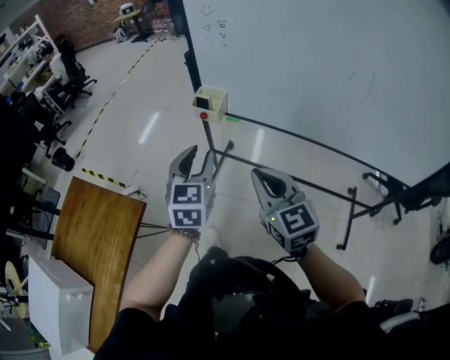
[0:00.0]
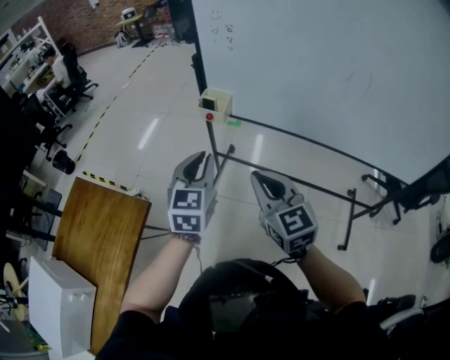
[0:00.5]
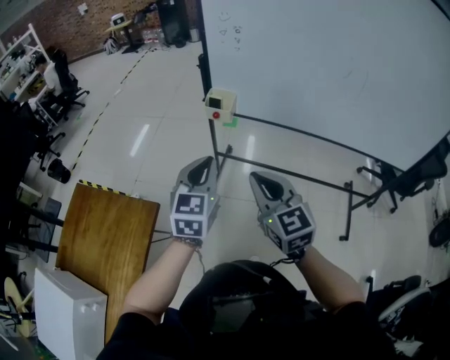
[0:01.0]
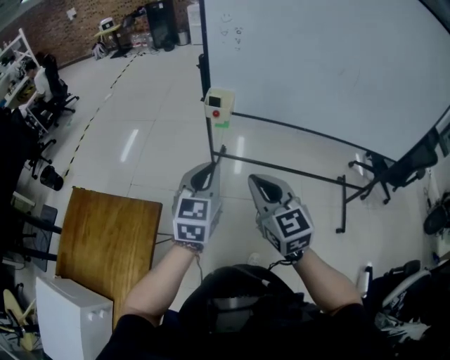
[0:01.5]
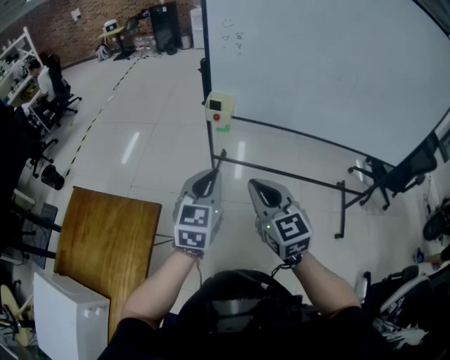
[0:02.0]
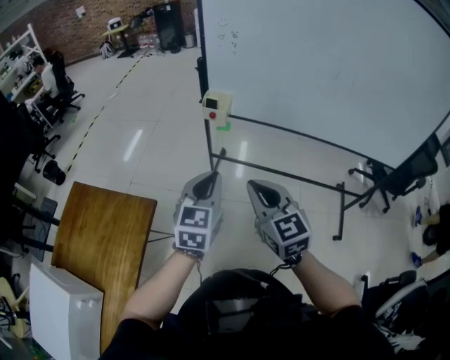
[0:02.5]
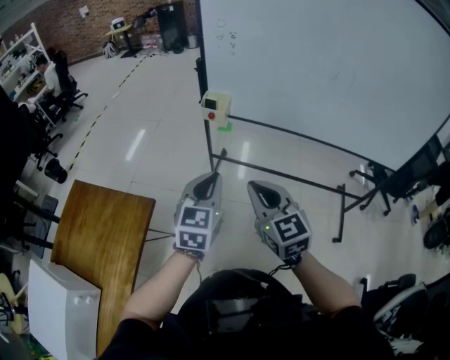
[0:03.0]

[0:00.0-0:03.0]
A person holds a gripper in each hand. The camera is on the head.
0:00.0 to 0:01.5: The right gripper heads to the left and backward, covering roughly 15 cm. The left gripper moves backward and to the left, roughly 10 cm, and closes its fingers.
0:01.5 to 0:03.0: The left gripper changes place by about 5 cm. The right gripper ends up about 5 cm from where it was.

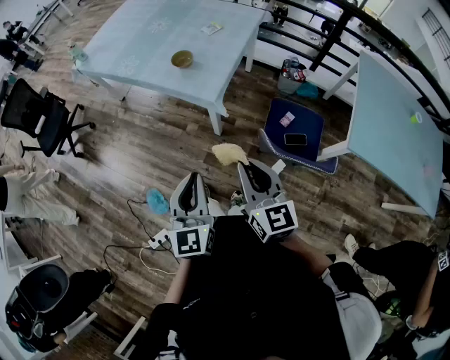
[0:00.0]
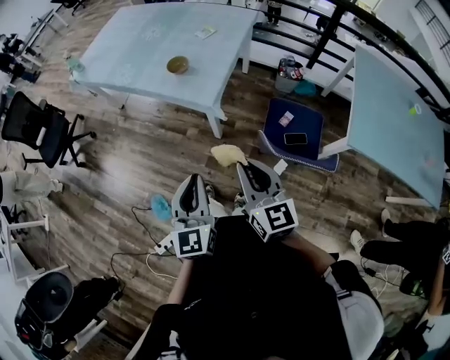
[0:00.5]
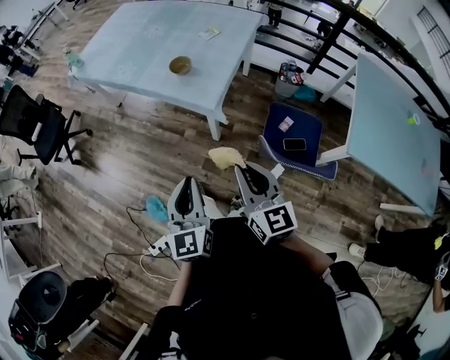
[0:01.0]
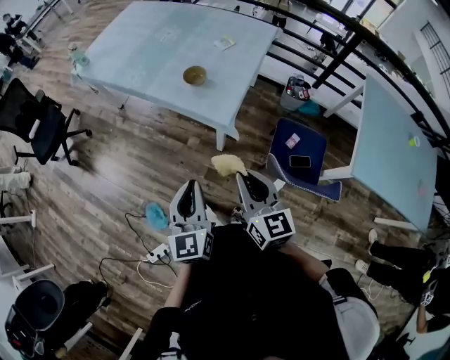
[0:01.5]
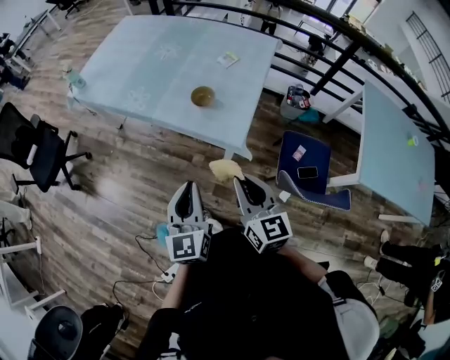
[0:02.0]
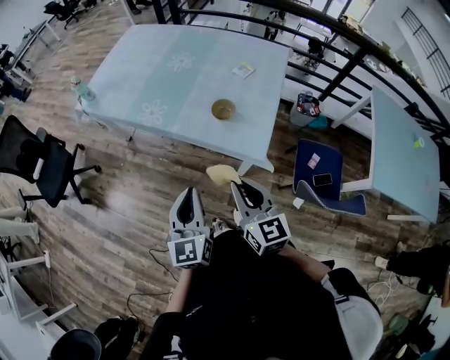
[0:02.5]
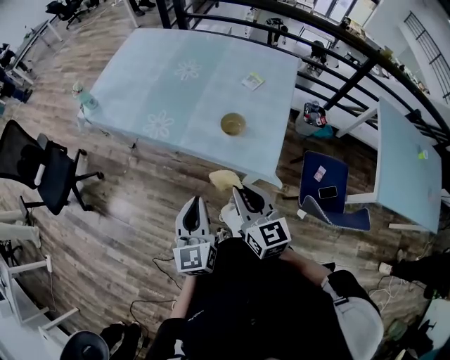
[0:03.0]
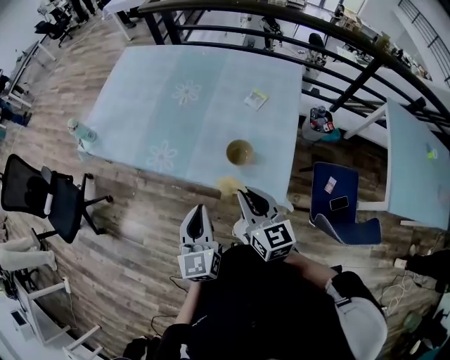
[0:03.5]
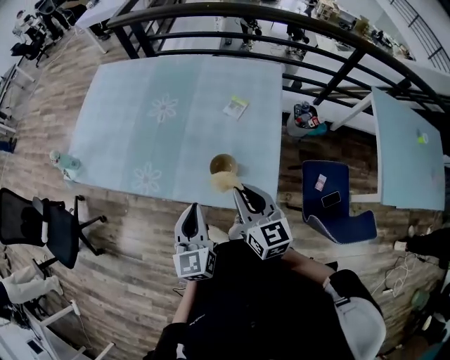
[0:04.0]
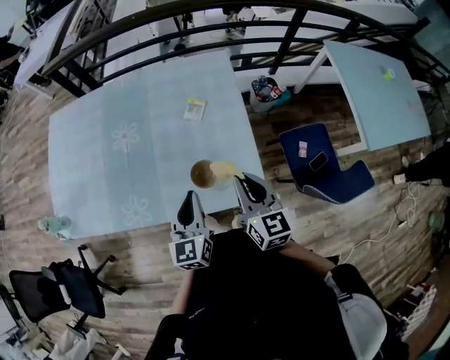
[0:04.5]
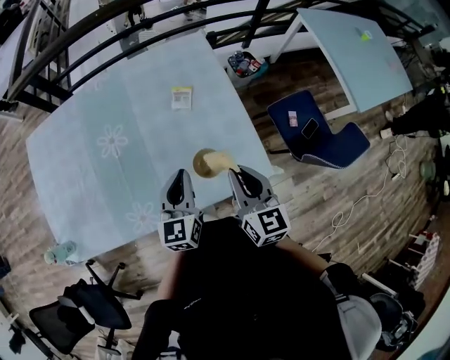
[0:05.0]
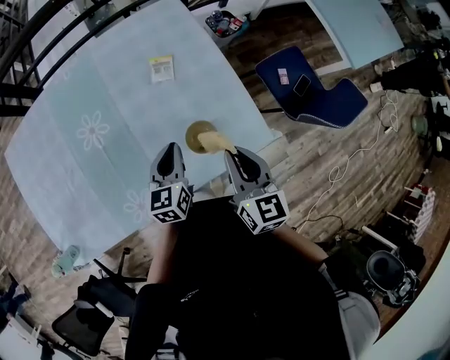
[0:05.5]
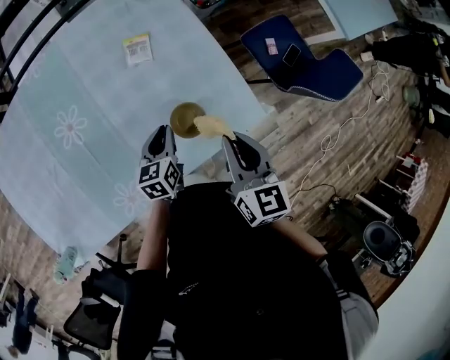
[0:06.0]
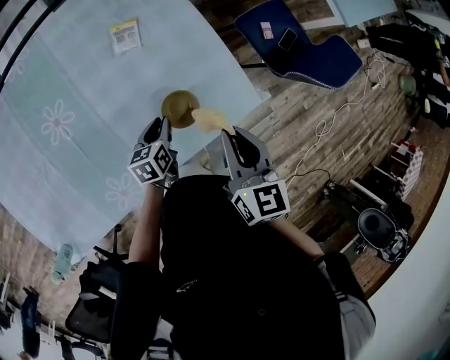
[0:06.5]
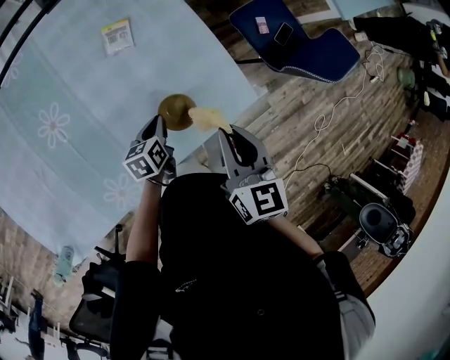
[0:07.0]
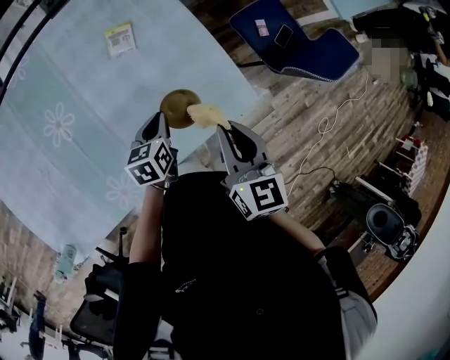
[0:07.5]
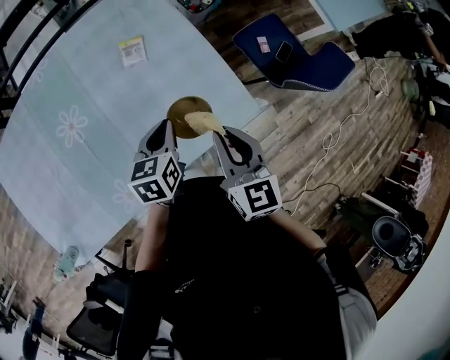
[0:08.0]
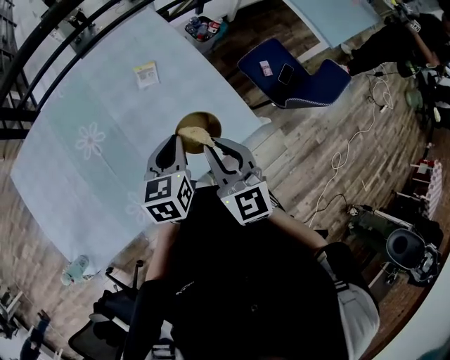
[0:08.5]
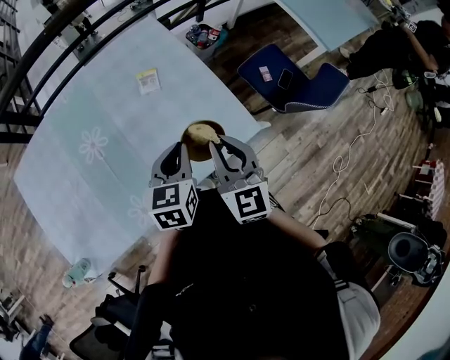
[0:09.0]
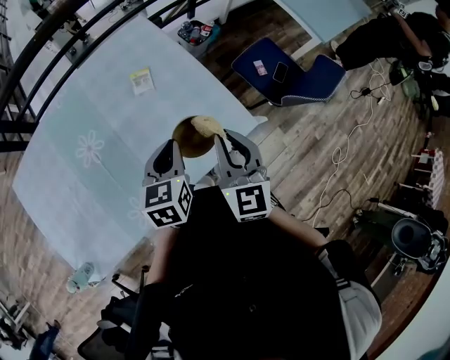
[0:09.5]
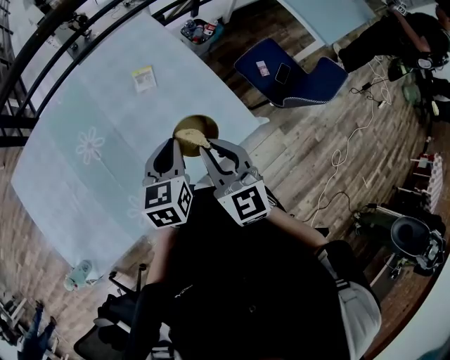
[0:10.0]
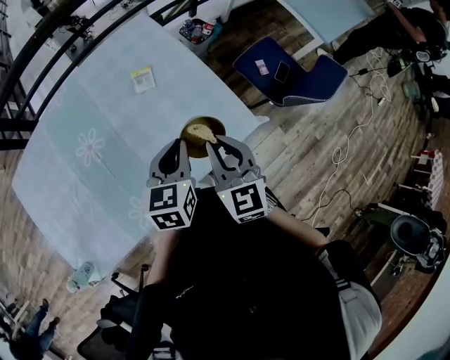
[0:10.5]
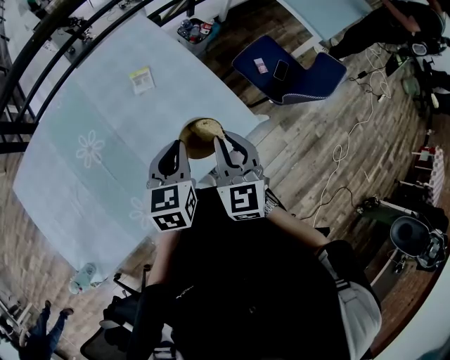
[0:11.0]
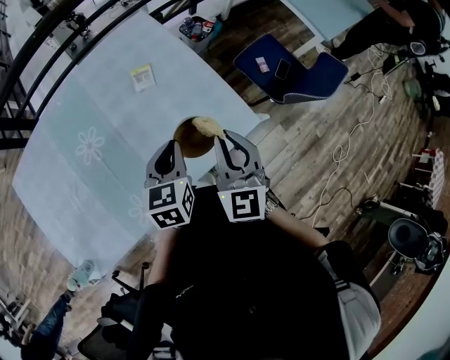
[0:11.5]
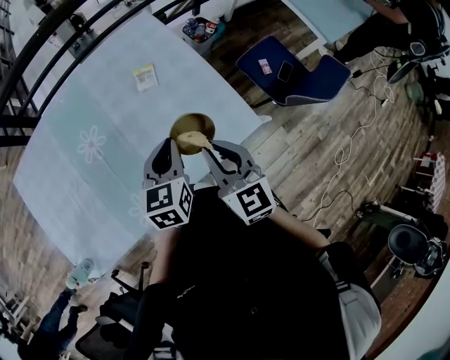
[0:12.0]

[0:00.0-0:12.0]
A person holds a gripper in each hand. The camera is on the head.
0:00.0 to 0:02.0: Both grippers travel together forward and to the left, approximately 25 cm.
0:02.0 to 0:04.0: The two grippers go about 30 cm forward.
0:04.0 to 0:06.0: The right gripper is displaced downward by roughly 5 cm, and rotates roughly 50 degrees. The left gripper is displaced downward by roughly 20 cm, and swivels roughly 60 degrees.
0:06.0 to 0:08.0: The left gripper moves upward, roughly 10 cm.
0:08.0 to 0:10.0: The left gripper shifts about 10 cm upward. The right gripper ends up roughly 5 cm from where it was.

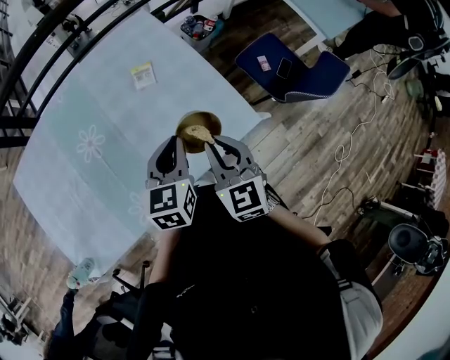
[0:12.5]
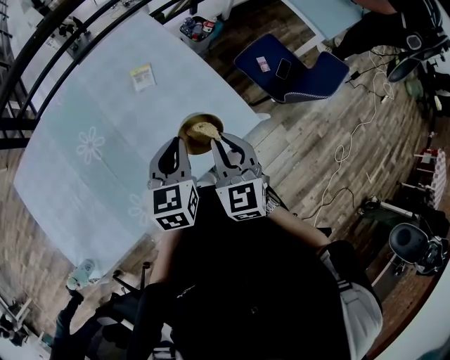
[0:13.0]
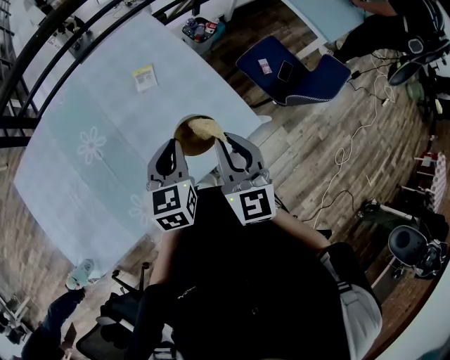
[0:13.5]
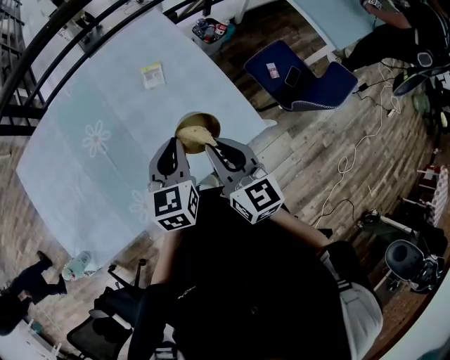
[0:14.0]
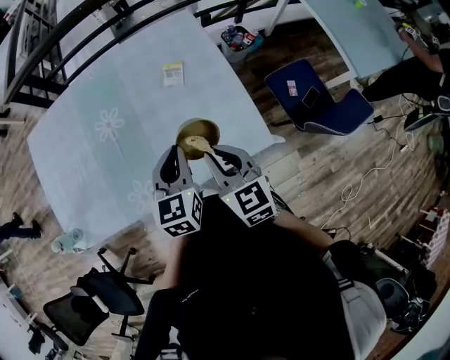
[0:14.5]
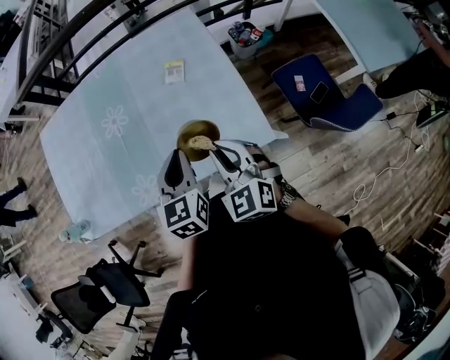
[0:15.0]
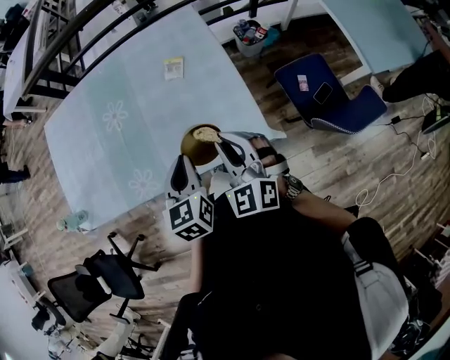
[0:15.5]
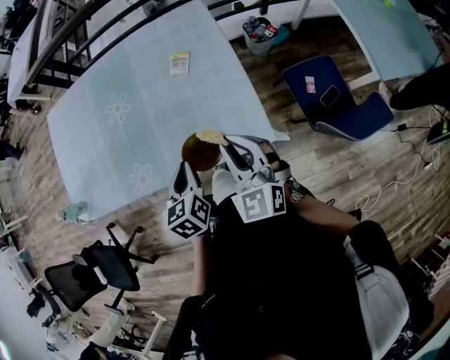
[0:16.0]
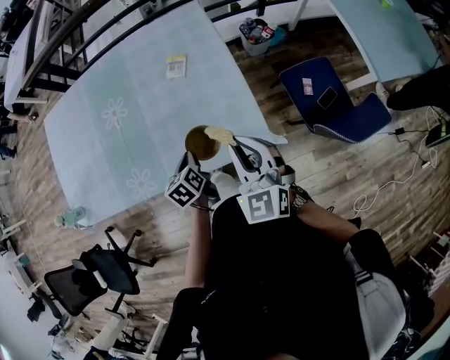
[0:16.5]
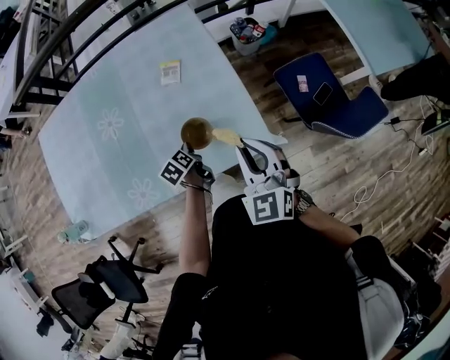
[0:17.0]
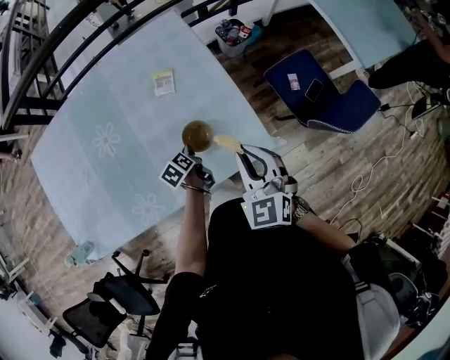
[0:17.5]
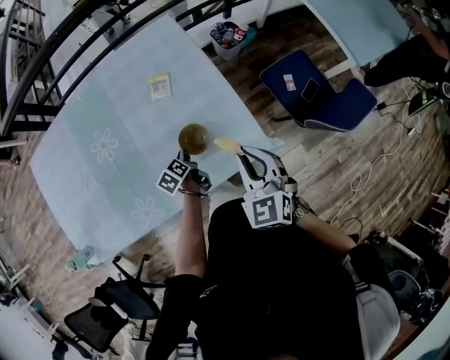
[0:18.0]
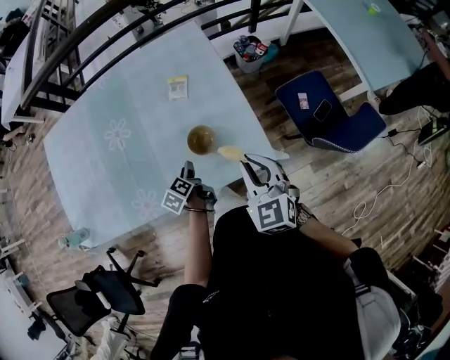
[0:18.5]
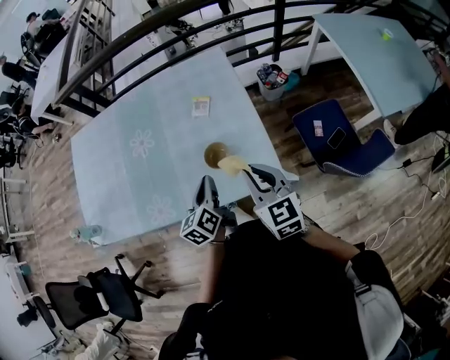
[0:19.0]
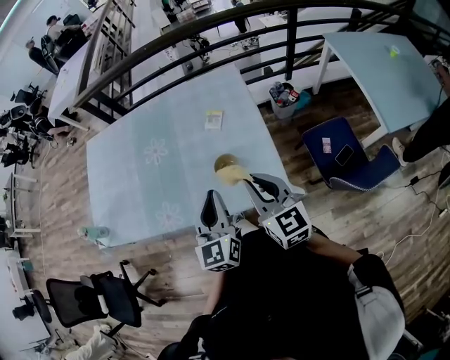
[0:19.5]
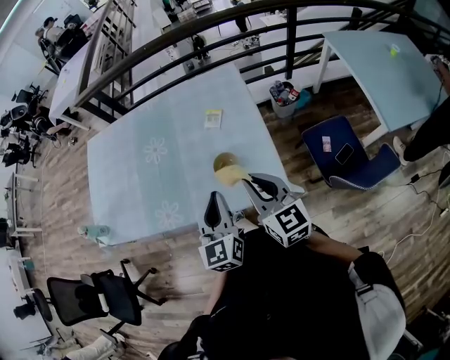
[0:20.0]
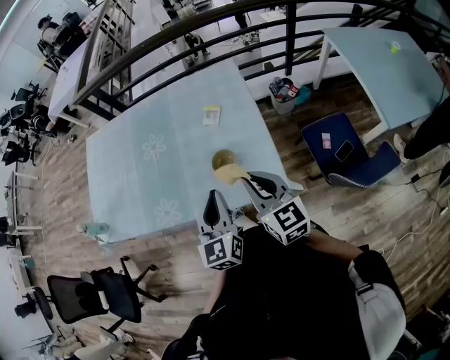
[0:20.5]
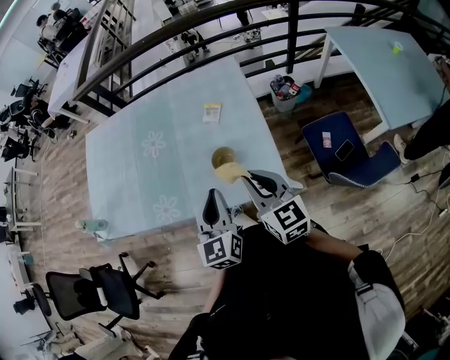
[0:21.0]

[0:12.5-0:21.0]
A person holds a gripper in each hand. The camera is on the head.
0:12.5 to 0:14.5: The left gripper swivels some 20 degrees. The right gripper swivels approximately 20 degrees.
0:14.5 to 0:16.5: The right gripper shifts some 10 cm to the right, and changes its angle by about 30 degrees, while the left gripper heads downward, covering roughly 20 cm, and swivels roughly 40 degrees.
0:16.5 to 0:19.0: The right gripper turns by approximately 20 degrees. Meanwhile the left gripper heads upward, covering roughly 10 cm, turns by some 30 degrees, and opens and closes again.
0:19.0 to 0:21.0: The left gripper goes about 10 cm upward and backward, and swivels roughly 30 degrees.

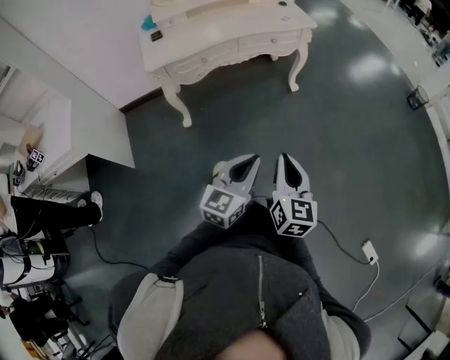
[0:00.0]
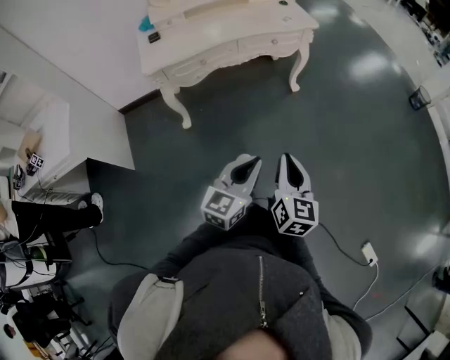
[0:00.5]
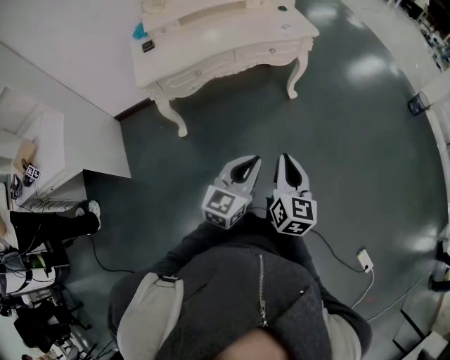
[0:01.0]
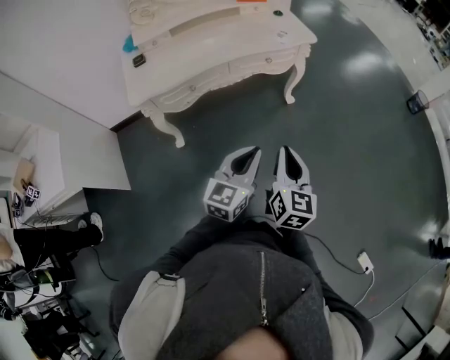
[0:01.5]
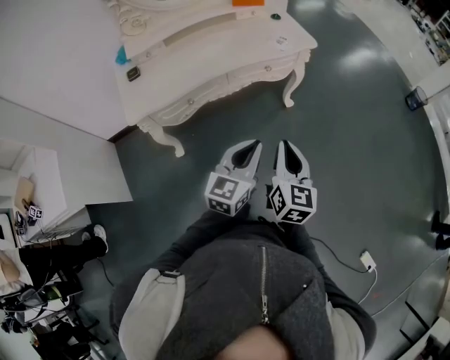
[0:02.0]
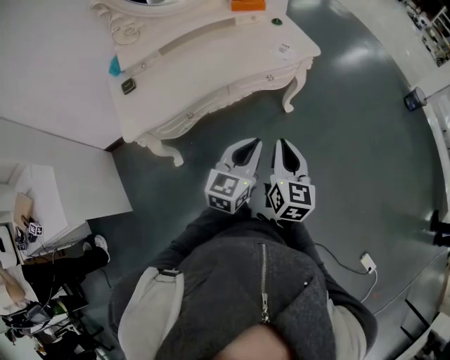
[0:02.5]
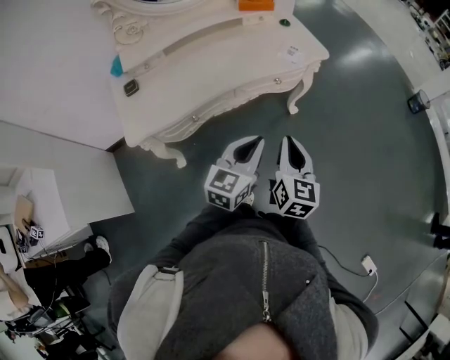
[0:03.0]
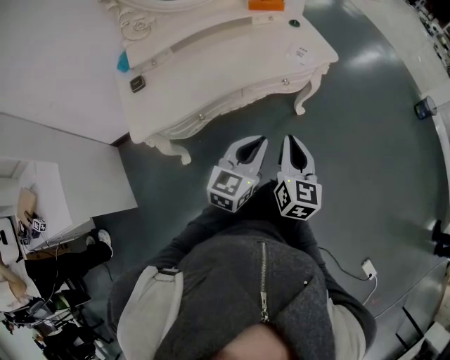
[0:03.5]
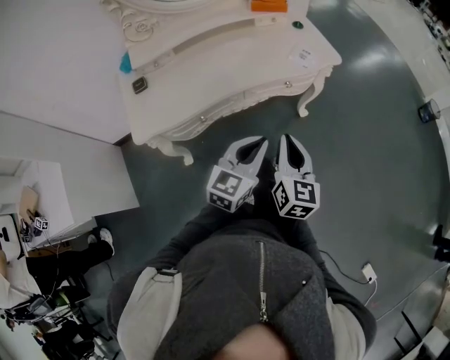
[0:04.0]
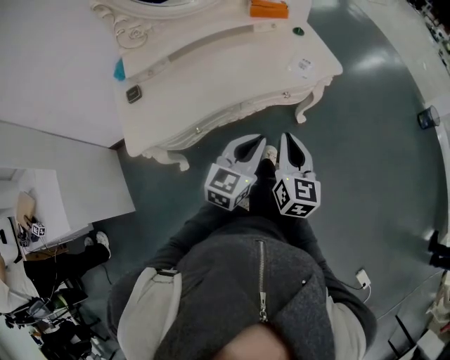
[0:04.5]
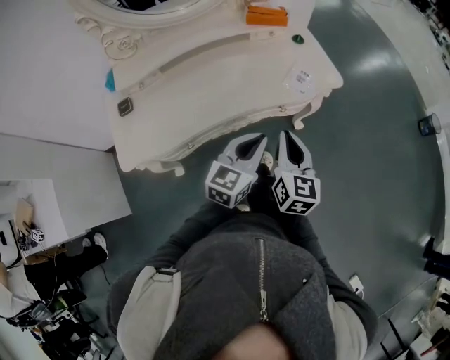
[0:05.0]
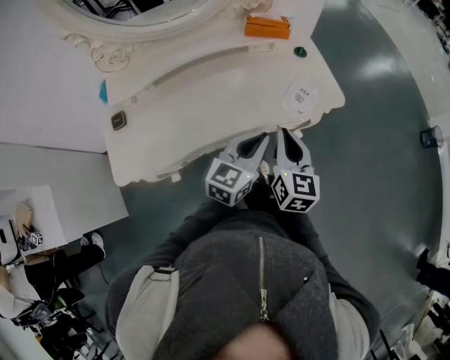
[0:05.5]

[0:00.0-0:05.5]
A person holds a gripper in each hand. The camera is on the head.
0:00.0 to 0:02.0: The grippers both shift forward by approximately 30 cm.
0:02.0 to 0:03.5: The grippers both shift forward and to the left by about 15 cm.
0:03.5 to 0:05.5: The grippers both shift forward by some 25 cm.
